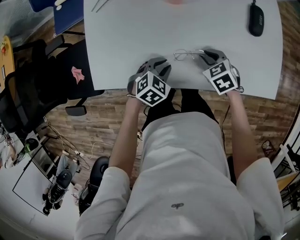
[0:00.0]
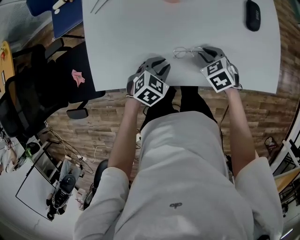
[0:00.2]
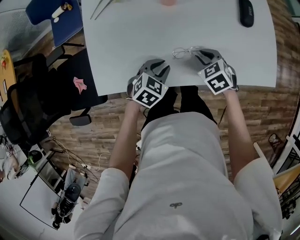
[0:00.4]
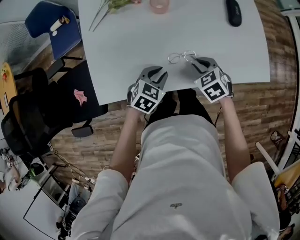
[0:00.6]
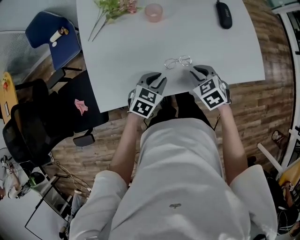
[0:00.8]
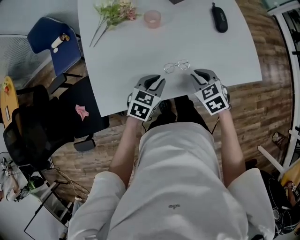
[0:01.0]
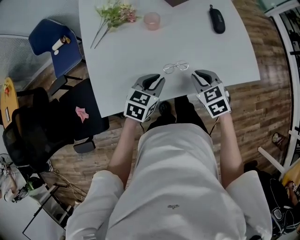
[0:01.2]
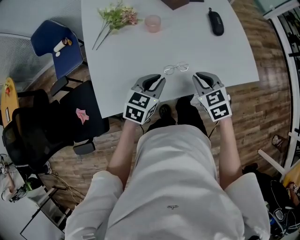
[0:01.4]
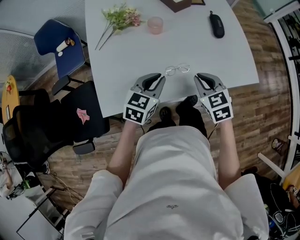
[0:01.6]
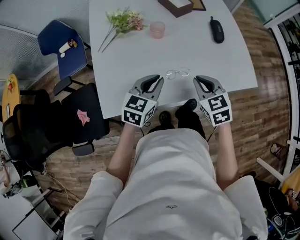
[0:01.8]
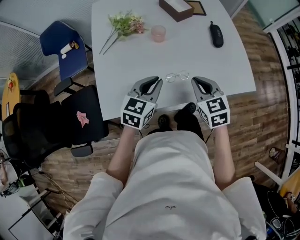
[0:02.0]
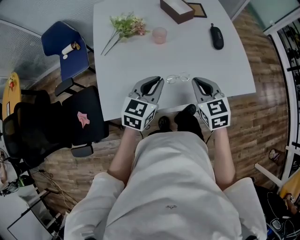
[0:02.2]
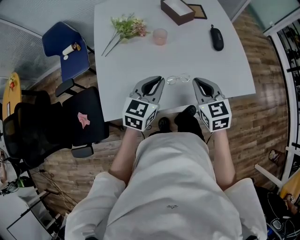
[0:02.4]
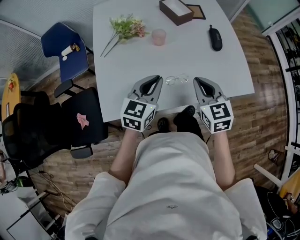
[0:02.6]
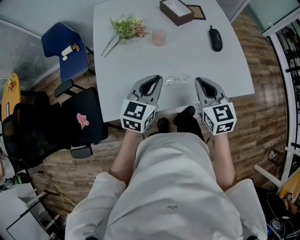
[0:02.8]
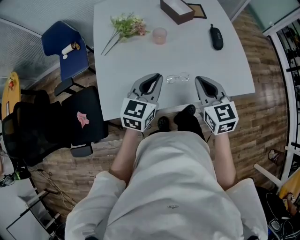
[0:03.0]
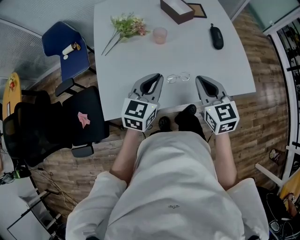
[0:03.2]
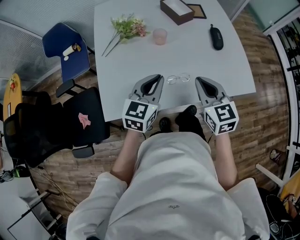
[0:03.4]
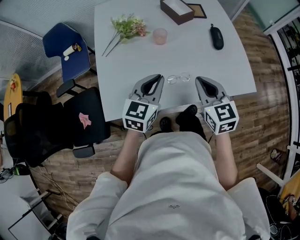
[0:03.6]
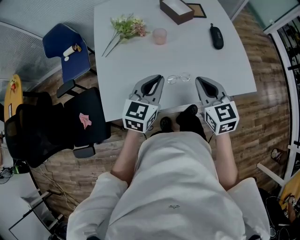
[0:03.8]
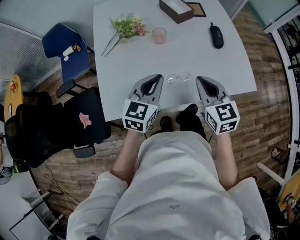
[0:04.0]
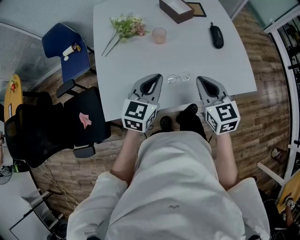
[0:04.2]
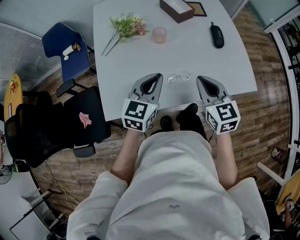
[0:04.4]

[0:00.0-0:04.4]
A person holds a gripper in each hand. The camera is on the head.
0:00.0 to 0:01.4: The left gripper is displaced upward by roughly 15 cm, and changes its angle by about 30 degrees. The right gripper moves upward and backward, some 15 cm, and rotates roughly 30 degrees.
0:01.4 to 0:03.0: Both grippers travel together upward, roughly 10 cm. The right gripper changes its angle by about 20 degrees. Meanwhile the left gripper turns by approximately 20 degrees.
0:03.0 to 0:04.4: Both grippers stay put.

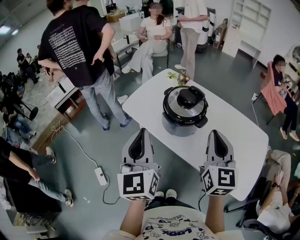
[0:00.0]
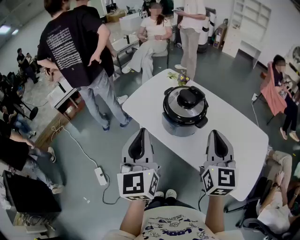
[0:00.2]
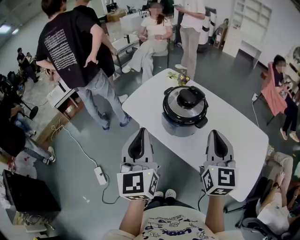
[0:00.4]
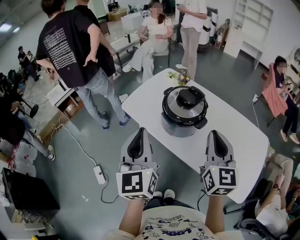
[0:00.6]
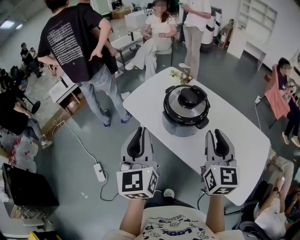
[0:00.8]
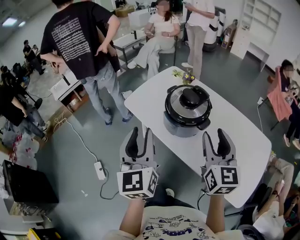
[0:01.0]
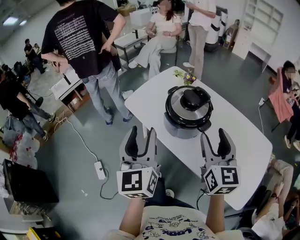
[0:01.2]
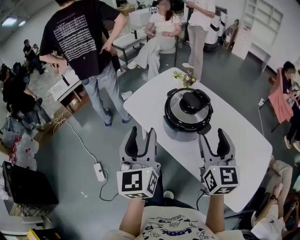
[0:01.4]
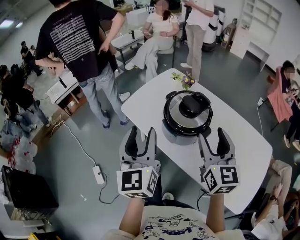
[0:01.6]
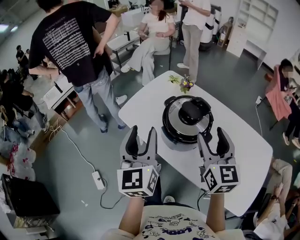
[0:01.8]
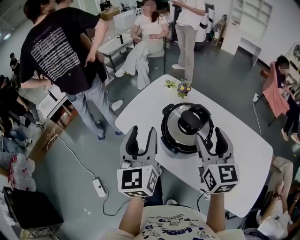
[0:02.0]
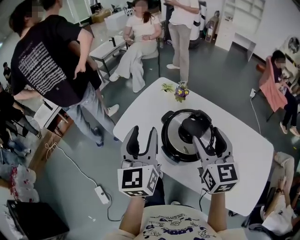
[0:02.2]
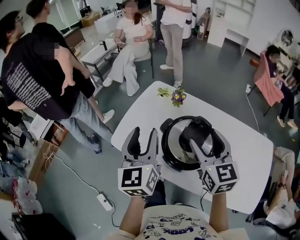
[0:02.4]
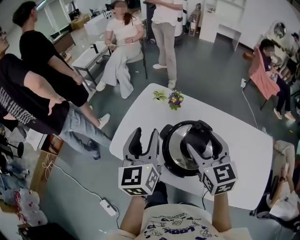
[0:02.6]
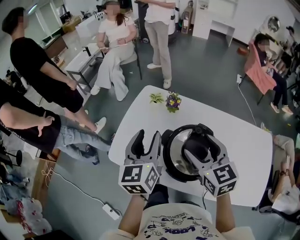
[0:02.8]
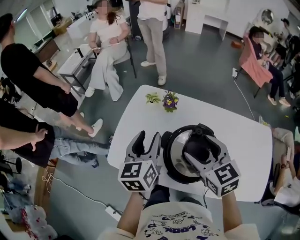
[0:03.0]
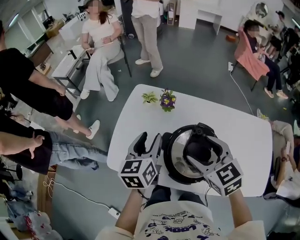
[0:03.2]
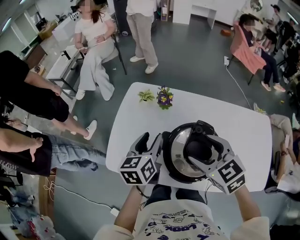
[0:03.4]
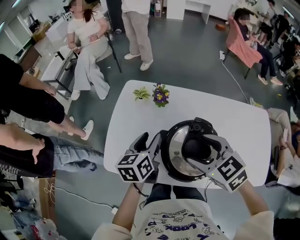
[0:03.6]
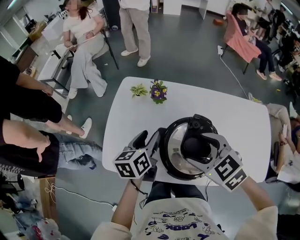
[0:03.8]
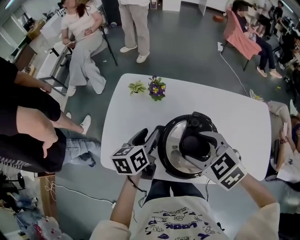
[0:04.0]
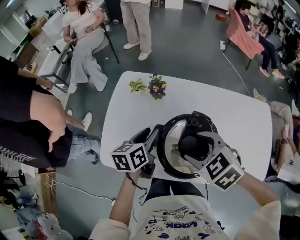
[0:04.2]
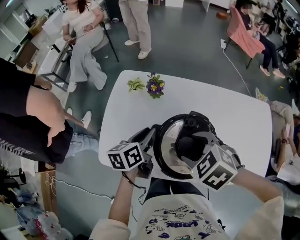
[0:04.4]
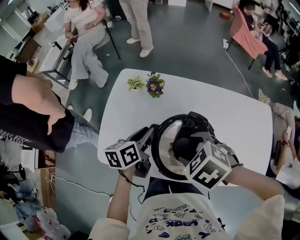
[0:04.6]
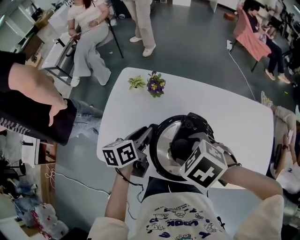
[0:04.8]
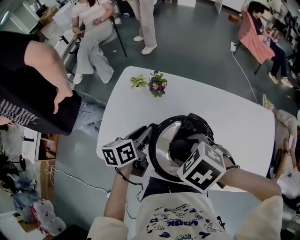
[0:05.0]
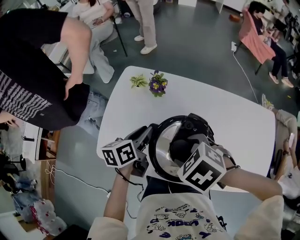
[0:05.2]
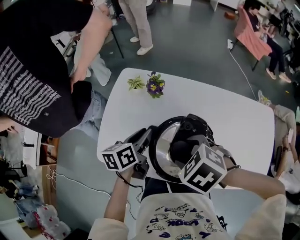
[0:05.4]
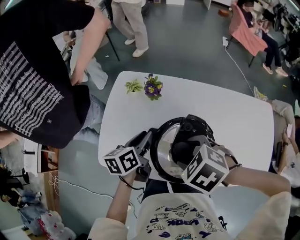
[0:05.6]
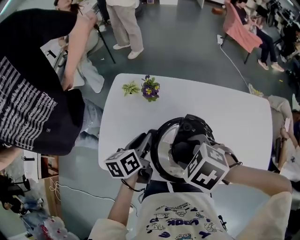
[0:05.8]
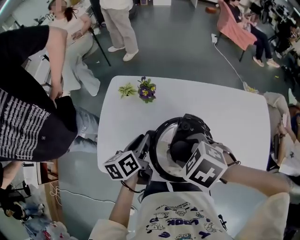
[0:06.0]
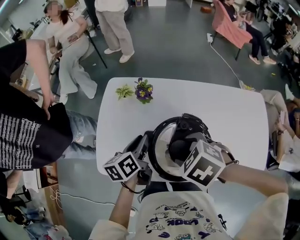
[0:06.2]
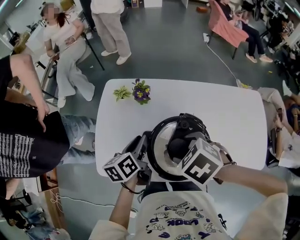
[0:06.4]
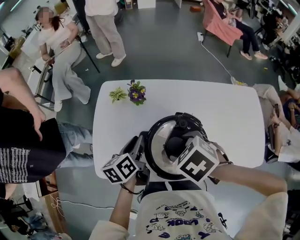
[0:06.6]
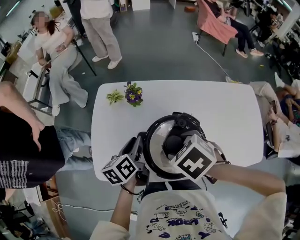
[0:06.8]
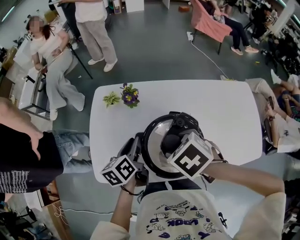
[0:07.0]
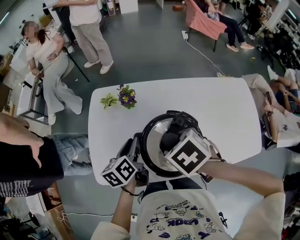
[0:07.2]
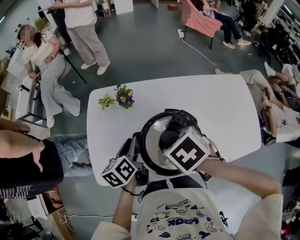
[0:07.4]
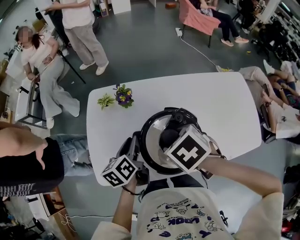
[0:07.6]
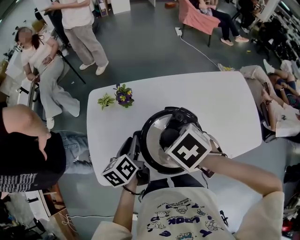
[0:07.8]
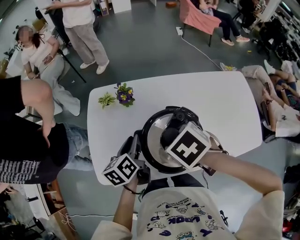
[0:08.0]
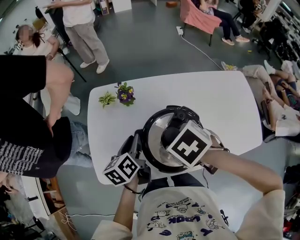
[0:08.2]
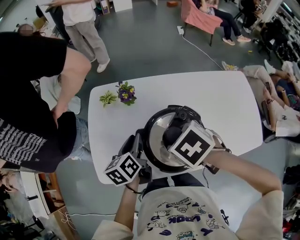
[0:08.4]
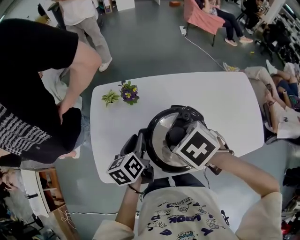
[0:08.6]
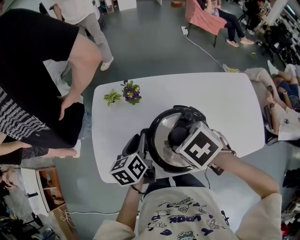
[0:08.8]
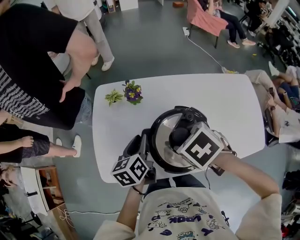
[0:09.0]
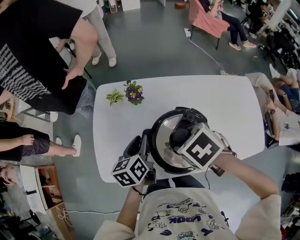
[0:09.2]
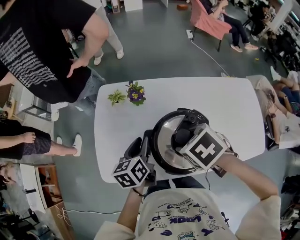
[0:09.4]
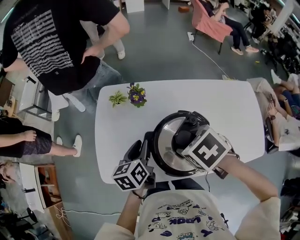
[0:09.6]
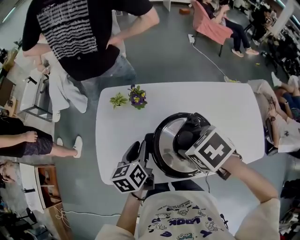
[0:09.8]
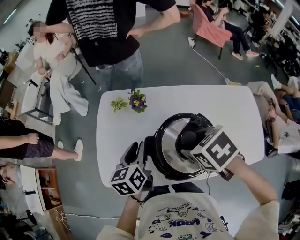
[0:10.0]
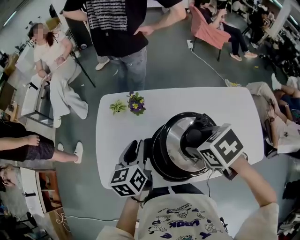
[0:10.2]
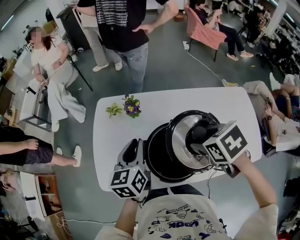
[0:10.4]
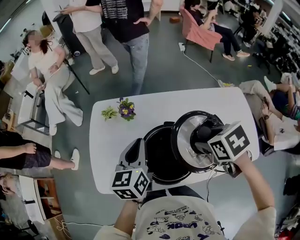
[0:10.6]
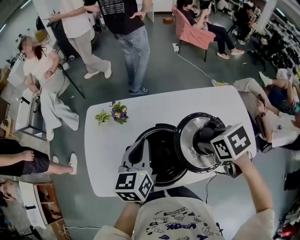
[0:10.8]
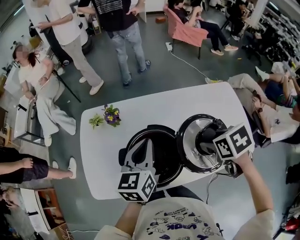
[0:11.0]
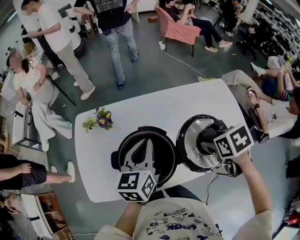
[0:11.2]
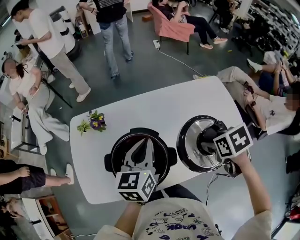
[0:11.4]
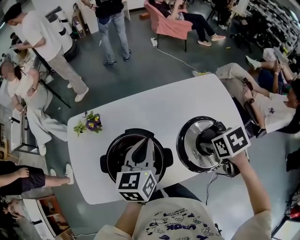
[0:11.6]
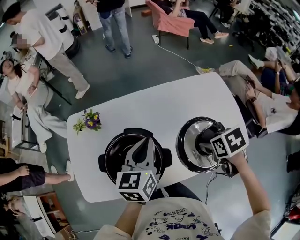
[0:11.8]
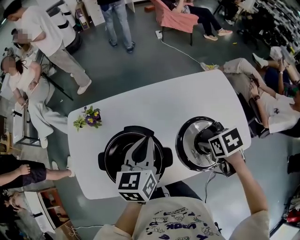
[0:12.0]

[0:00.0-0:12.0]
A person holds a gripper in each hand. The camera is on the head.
0:00.0 to 0:01.6: The grippers both shift forward by approximately 10 cm. The left gripper opens up, while the right gripper opens.
0:01.6 to 0:03.0: Both grippers move forward, approximately 30 cm. The left gripper turns by some 40 degrees. The right gripper turns by roughly 20 degrees.
0:03.0 to 0:04.4: The right gripper is displaced downward by about 5 cm, and points its fingers some 40 degrees further downward. Meanwhile the left gripper is displaced downward and to the right by roughly 15 cm, and changes its angle by roughly 40 degrees.
0:04.4 to 0:06.0: The grippers stay close to where they were, moving slightly.
0:06.0 to 0:07.6: The right gripper swivels about 30 degrees.
0:07.6 to 0:09.0: There are only small adjustments of the grippers.
0:09.0 to 0:10.4: The left gripper goes about 10 cm upward. Meanwhile the right gripper ends up approximately 10 cm from where it was.
0:10.4 to 0:12.0: Both grippers travel together to the right, some 25 cm. The right gripper swivels approximately 30 degrees.

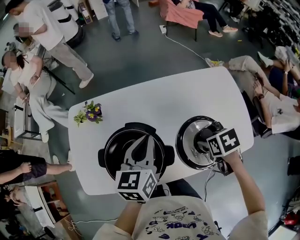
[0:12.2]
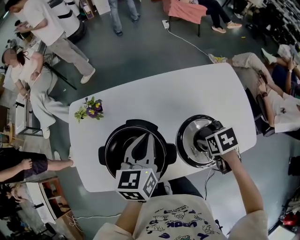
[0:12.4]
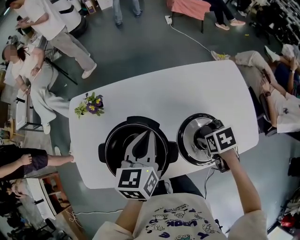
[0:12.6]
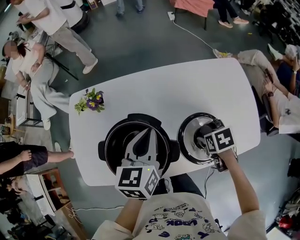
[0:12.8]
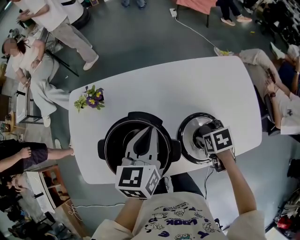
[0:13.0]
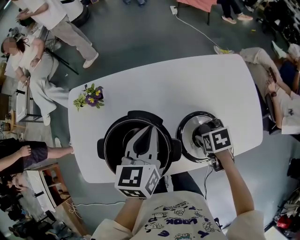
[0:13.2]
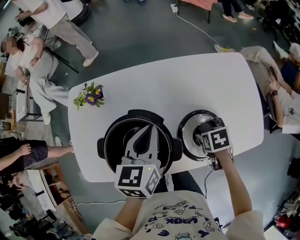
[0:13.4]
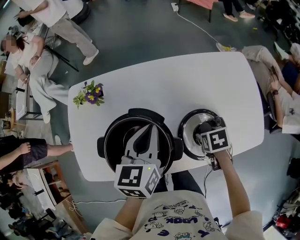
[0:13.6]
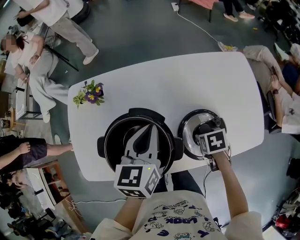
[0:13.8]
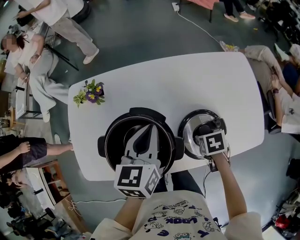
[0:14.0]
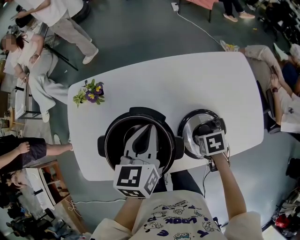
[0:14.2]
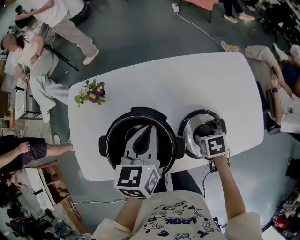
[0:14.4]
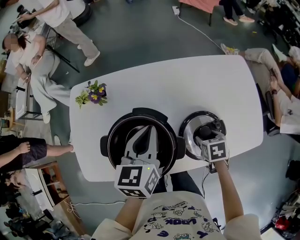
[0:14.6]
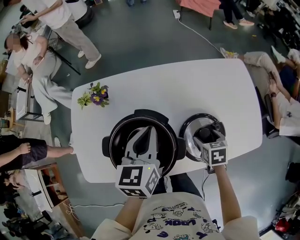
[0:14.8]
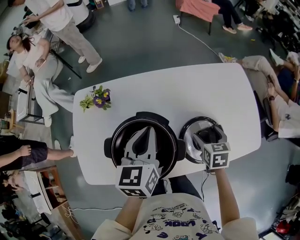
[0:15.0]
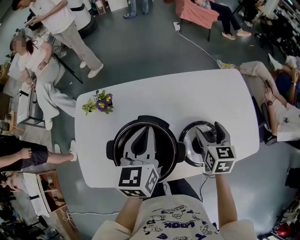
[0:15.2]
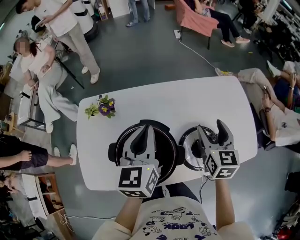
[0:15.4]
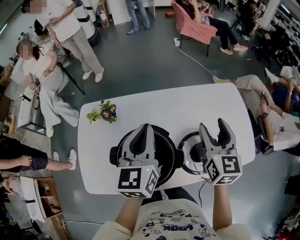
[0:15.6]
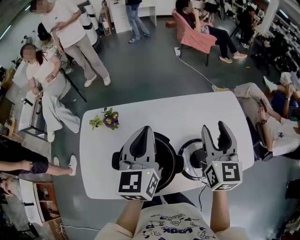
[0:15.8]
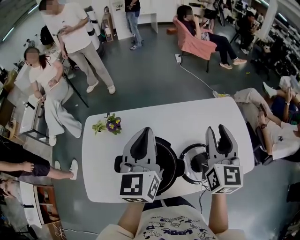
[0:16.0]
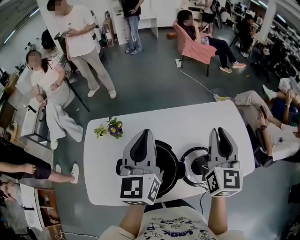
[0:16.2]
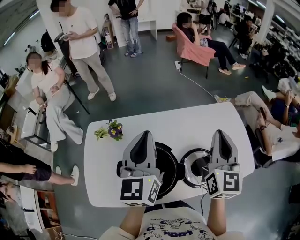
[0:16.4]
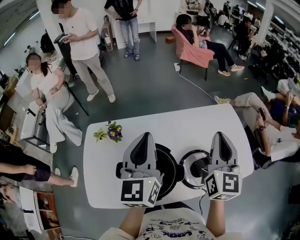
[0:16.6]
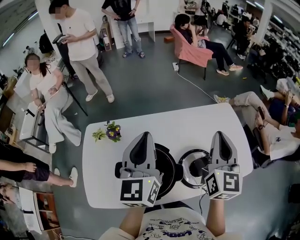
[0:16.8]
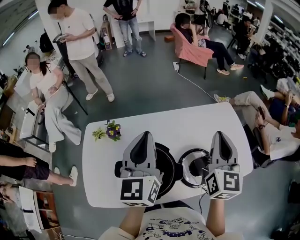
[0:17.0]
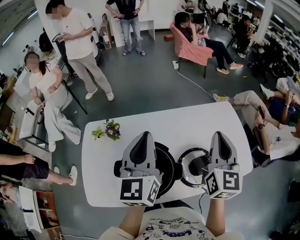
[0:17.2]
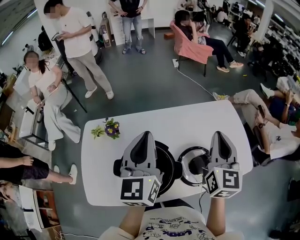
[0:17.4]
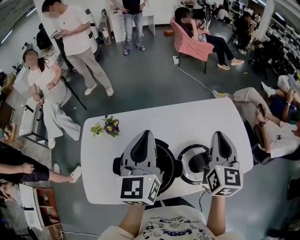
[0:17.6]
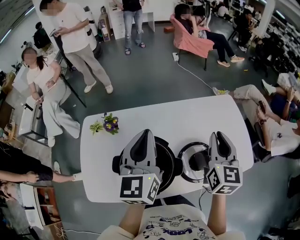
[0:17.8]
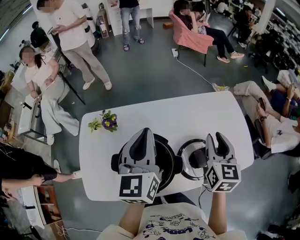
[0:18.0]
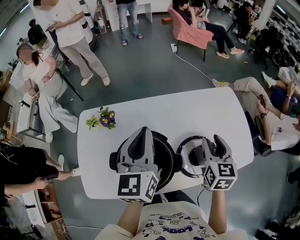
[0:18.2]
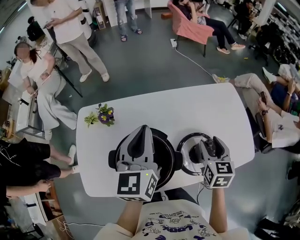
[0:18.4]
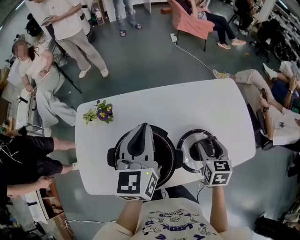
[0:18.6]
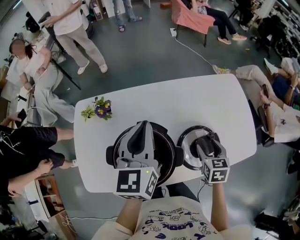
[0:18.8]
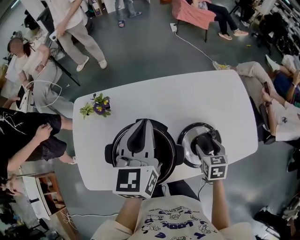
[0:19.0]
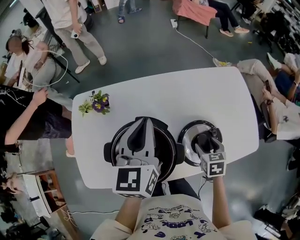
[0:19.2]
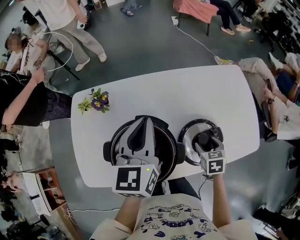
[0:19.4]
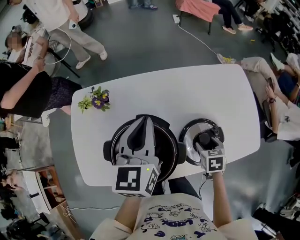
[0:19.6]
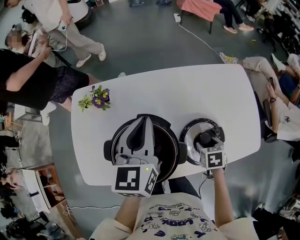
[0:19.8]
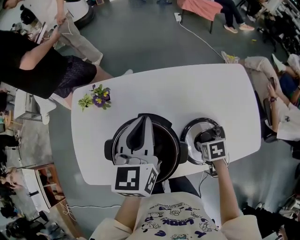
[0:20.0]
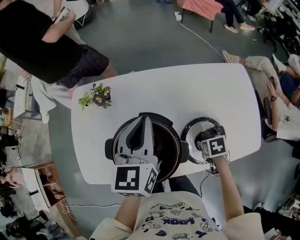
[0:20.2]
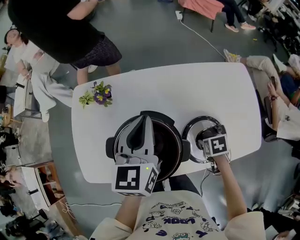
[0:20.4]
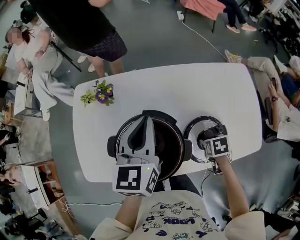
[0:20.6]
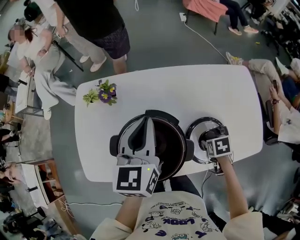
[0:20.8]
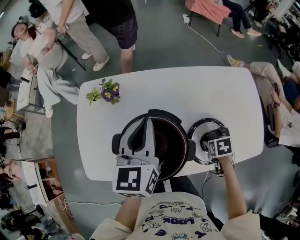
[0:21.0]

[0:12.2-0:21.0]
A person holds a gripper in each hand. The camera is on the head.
0:12.2 to 0:13.6: The right gripper travels downward by some 10 cm.
0:13.6 to 0:15.2: The left gripper moves about 5 cm. The right gripper travels upward by roughly 15 cm, and tips its fingers upward by approximately 40 degrees.
0:15.2 to 0:16.6: The left gripper heads upward, covering some 15 cm, and swivels some 20 degrees, while the right gripper shifts approximately 25 cm upward, tilts its fingers some 30 degrees upward, and closes its fingers.
0:16.6 to 0:18.0: The right gripper is displaced downward by approximately 10 cm.
0:18.0 to 0:19.6: The left gripper travels downward by about 10 cm, while the right gripper goes some 25 cm downward, angles its fingers downward, by some 40 degrees, and opens.
